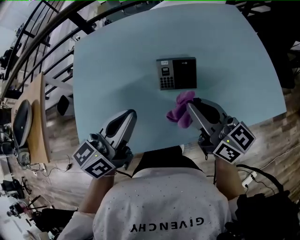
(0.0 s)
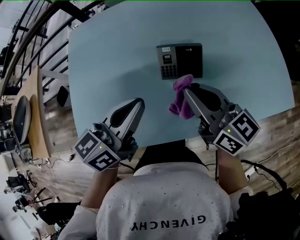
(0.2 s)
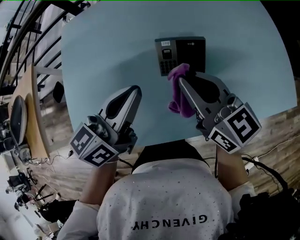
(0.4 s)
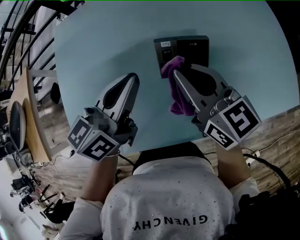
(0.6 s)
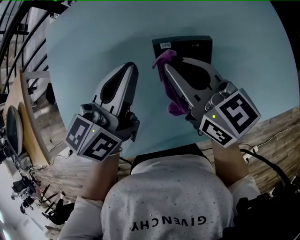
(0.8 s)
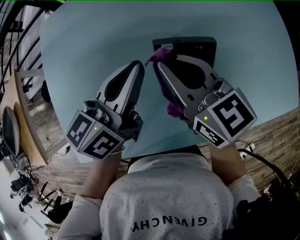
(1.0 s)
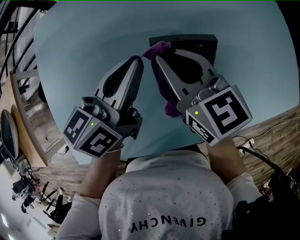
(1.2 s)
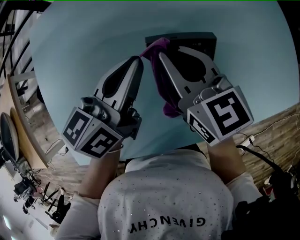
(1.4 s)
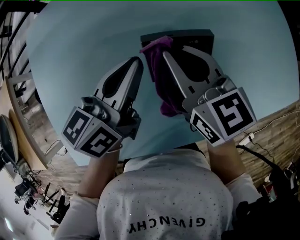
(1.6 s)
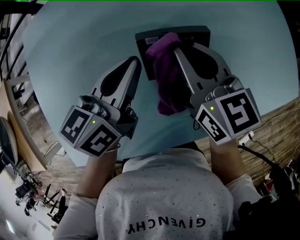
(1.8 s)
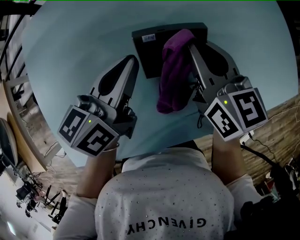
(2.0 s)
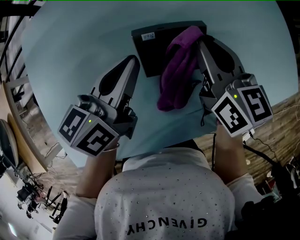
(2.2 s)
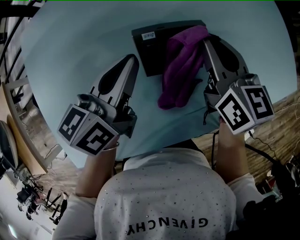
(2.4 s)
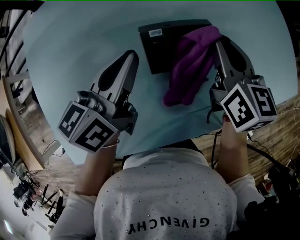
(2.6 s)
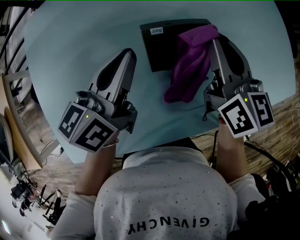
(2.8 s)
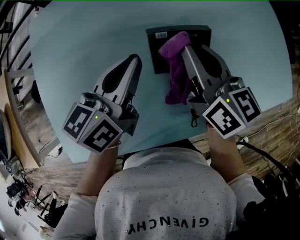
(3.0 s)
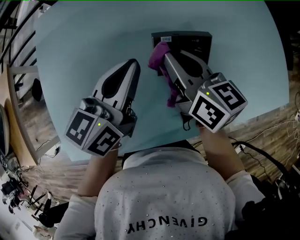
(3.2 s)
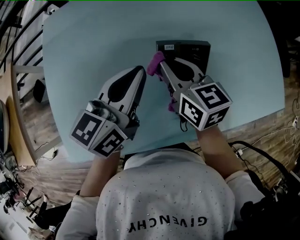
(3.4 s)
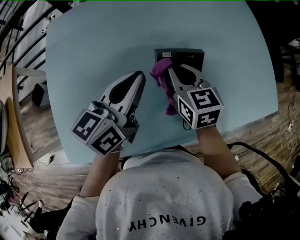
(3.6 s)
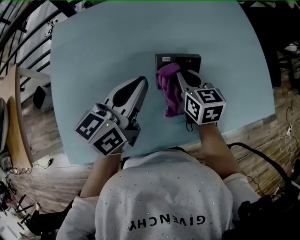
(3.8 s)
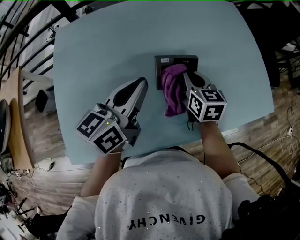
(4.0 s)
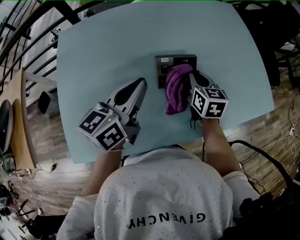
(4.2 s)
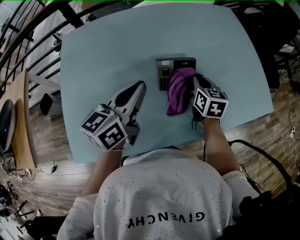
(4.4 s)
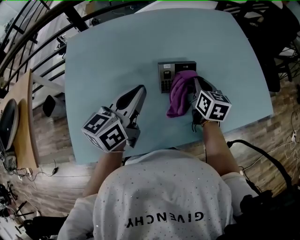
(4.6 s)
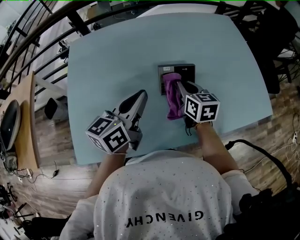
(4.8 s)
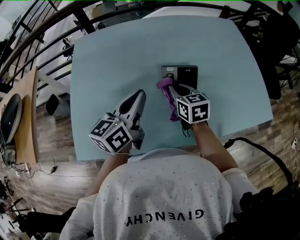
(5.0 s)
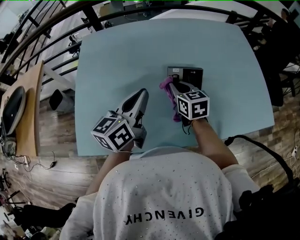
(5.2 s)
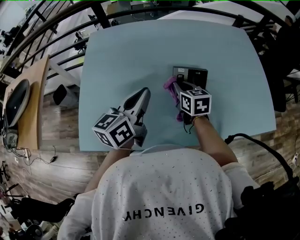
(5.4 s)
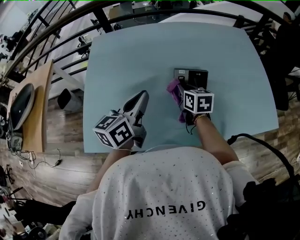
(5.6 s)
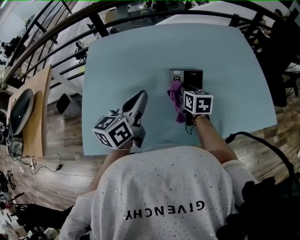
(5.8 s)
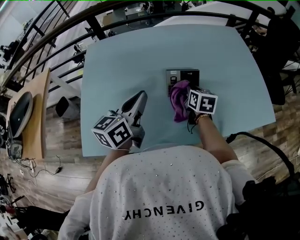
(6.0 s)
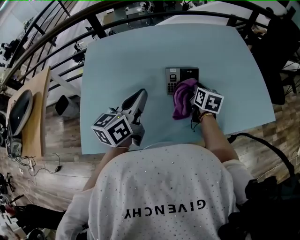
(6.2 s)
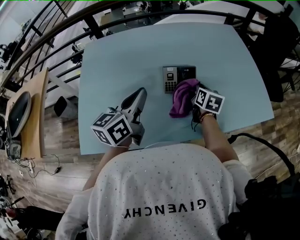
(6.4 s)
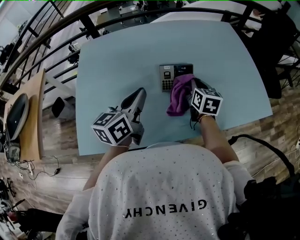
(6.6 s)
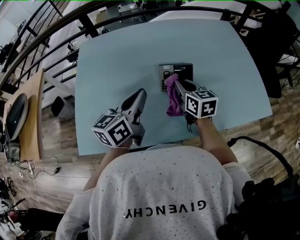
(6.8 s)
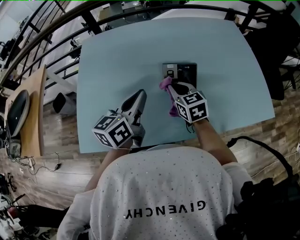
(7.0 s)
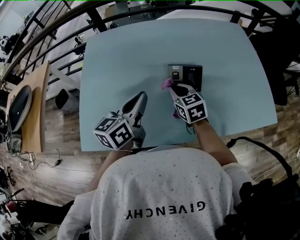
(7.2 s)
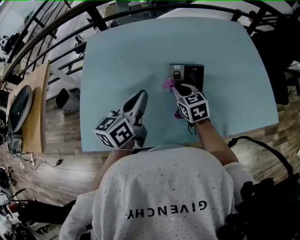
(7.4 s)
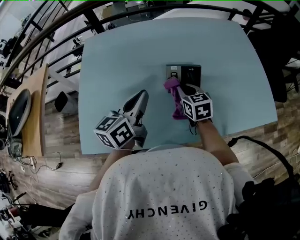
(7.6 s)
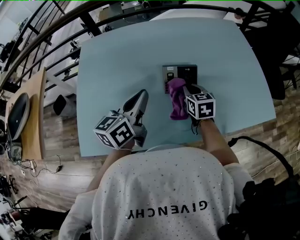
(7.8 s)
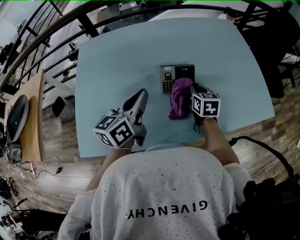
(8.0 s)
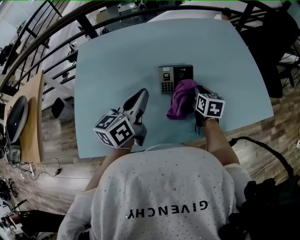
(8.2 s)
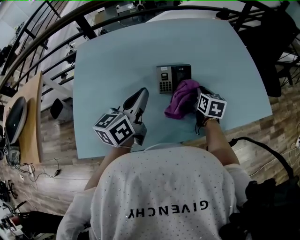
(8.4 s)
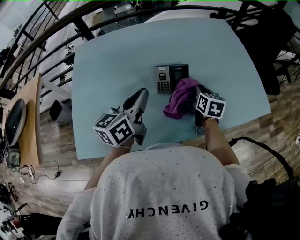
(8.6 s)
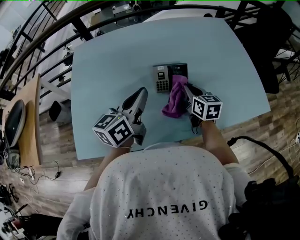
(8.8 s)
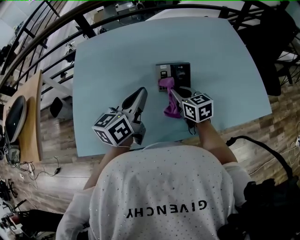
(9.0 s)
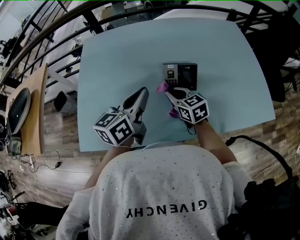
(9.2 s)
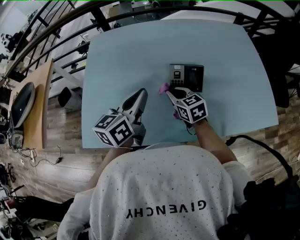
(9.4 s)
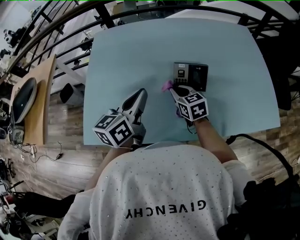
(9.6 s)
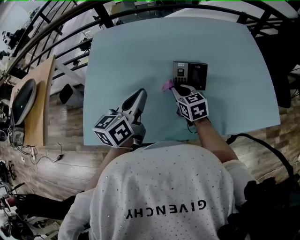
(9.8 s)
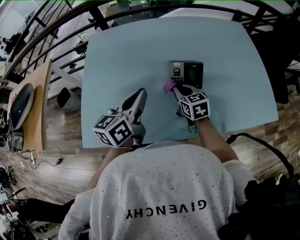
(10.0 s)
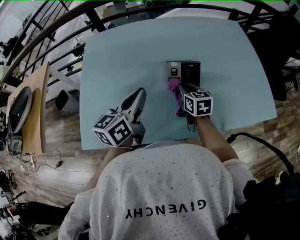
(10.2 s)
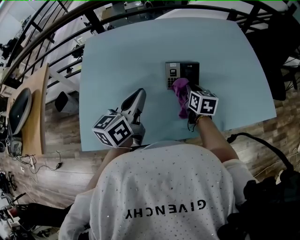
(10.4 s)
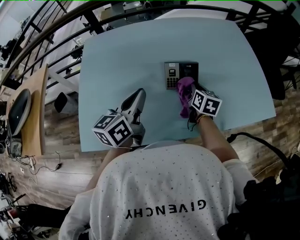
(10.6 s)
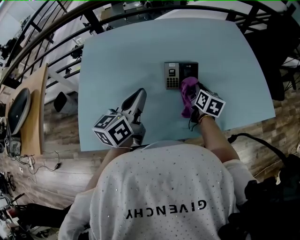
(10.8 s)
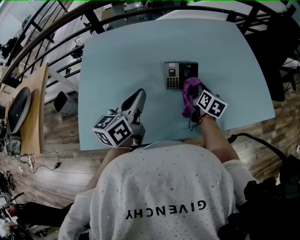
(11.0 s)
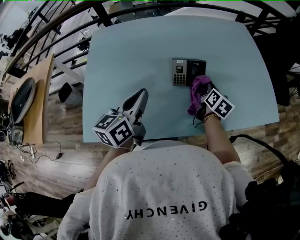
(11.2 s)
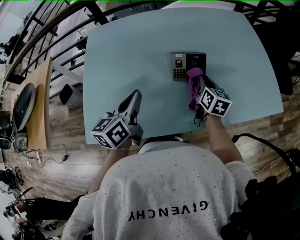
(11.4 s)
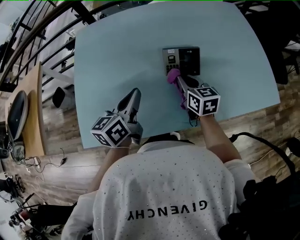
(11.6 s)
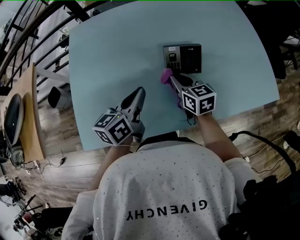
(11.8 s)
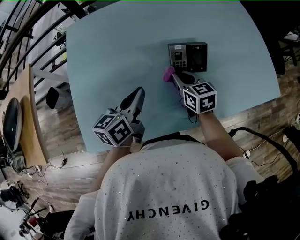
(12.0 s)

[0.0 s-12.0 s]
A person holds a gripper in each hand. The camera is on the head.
0.0 to 1.6 s: Both grippers travel together forward and downward, roughly 20 cm. The right gripper swivels roughly 20 degrees.
1.6 to 3.0 s: The right gripper moves about 10 cm to the right and comes back.
3.0 to 4.4 s: The right gripper shifts approximately 10 cm to the right and downward, and rotates some 30 degrees. Meanwhile the left gripper heads upward and backward, covering roughly 10 cm.
4.4 to 6.0 s: The left gripper shifts by some 5 cm. The right gripper reaches roughly 15 cm to the left, then returns.
6.0 to 7.6 s: The right gripper goes left and right, about 15 cm each way, reversing 2 times, and turns by some 20 degrees.
7.6 to 9.0 s: The right gripper moves about 15 cm to the right and comes back.
9.0 to 10.4 s: The right gripper moves approximately 5 cm, and changes its angle by some 20 degrees.
10.4 to 12.0 s: The right gripper shifts some 10 cm to the left. Meanwhile the left gripper is displaced downward by some 10 cm.

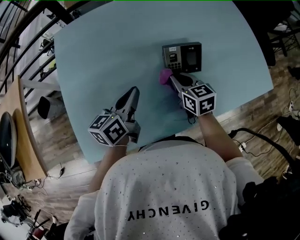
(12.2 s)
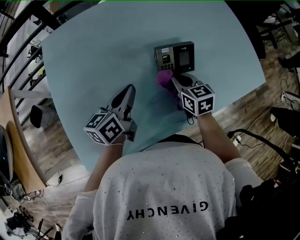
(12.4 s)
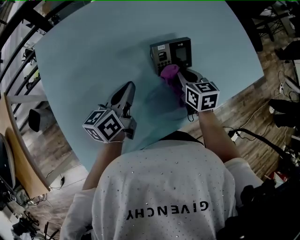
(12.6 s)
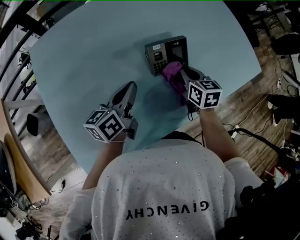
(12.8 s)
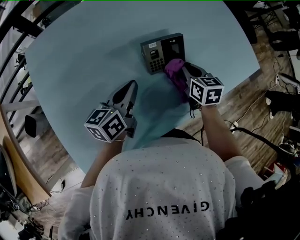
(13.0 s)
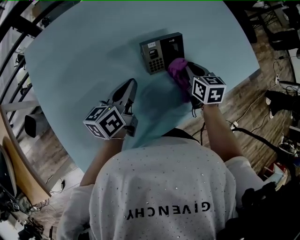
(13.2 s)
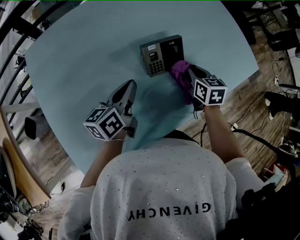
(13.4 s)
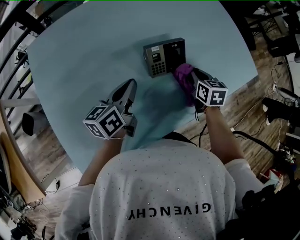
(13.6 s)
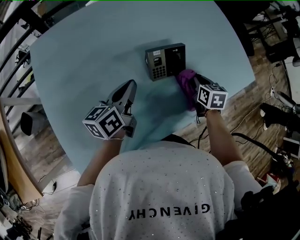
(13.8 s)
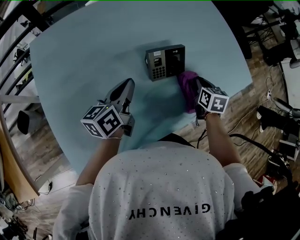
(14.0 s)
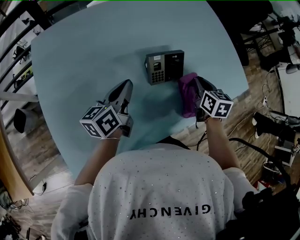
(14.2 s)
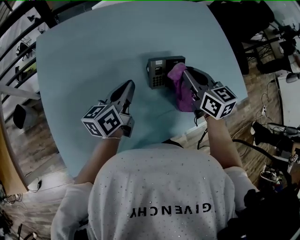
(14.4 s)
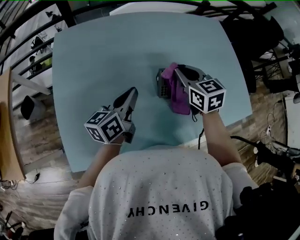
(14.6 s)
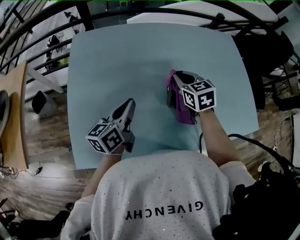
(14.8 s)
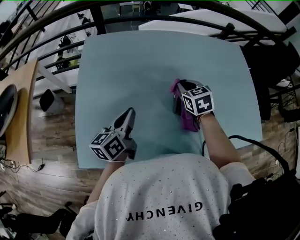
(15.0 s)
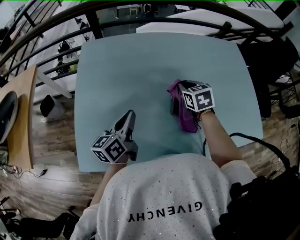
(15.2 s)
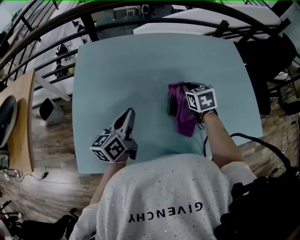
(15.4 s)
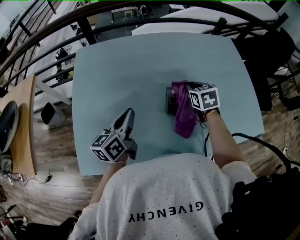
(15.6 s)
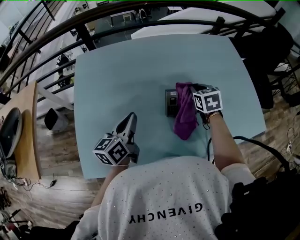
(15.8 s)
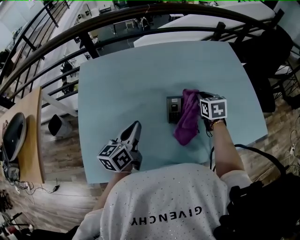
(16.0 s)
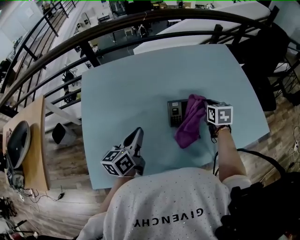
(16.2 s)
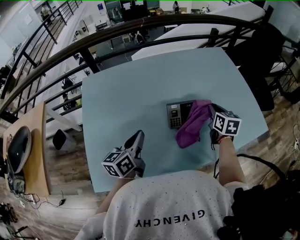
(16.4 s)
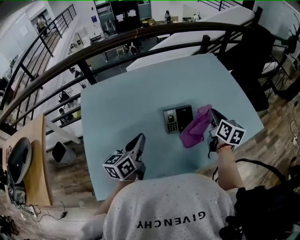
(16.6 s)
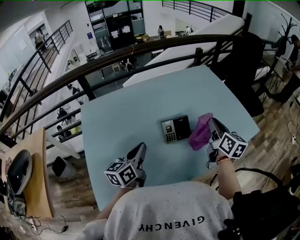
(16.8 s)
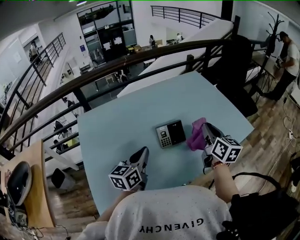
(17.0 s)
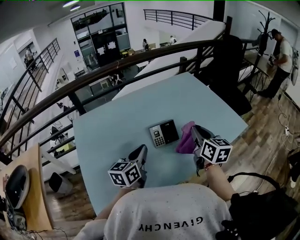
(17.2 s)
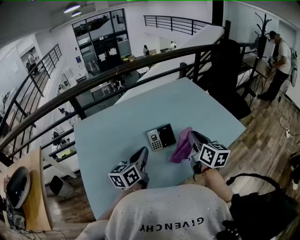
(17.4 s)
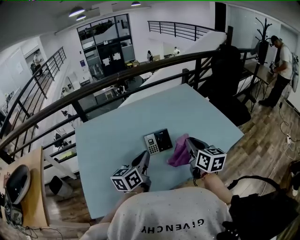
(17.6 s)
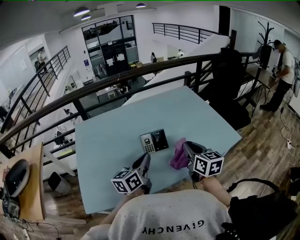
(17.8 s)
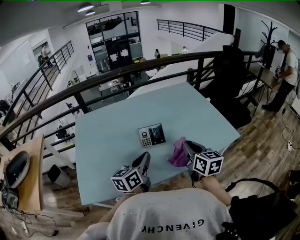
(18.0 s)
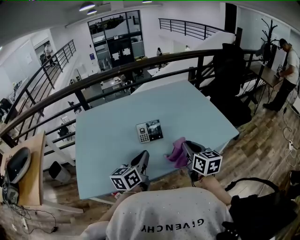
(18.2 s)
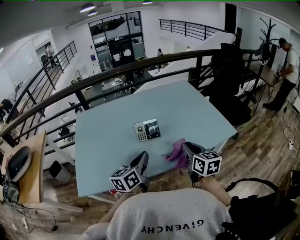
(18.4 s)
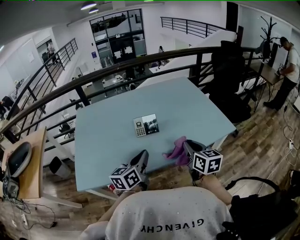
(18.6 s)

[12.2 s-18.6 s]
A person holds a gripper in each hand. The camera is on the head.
12.2 to 13.8 s: The left gripper moves forward, some 5 cm; the right gripper shifts approximately 20 cm to the right, and rotates roughly 30 degrees.
13.8 to 15.4 s: The left gripper changes place by approximately 10 cm, and swivels roughly 30 degrees. Meanwhile the right gripper changes place by about 20 cm, and changes its angle by about 30 degrees.
15.4 to 17.0 s: The right gripper is displaced upward, backward and to the right by some 25 cm, and tips its fingers upward by approximately 40 degrees. Meanwhile the left gripper is displaced to the right and upward by some 10 cm, and rotates about 30 degrees.
17.0 to 18.6 s: The left gripper heads to the right and backward, covering some 25 cm. Meanwhile the right gripper travels backward and to the right by about 20 cm.

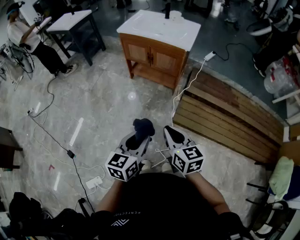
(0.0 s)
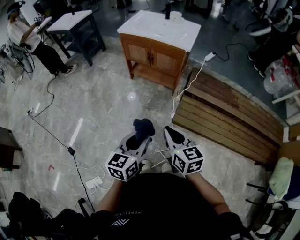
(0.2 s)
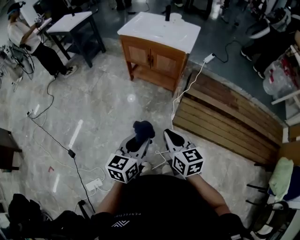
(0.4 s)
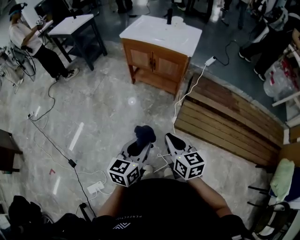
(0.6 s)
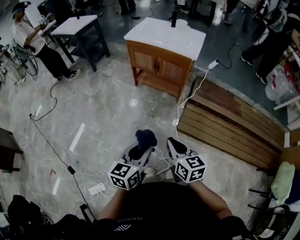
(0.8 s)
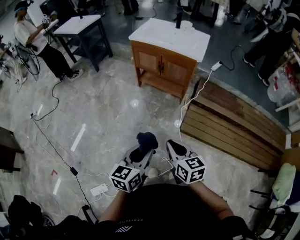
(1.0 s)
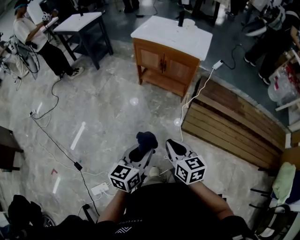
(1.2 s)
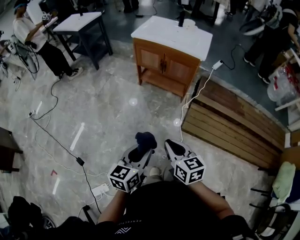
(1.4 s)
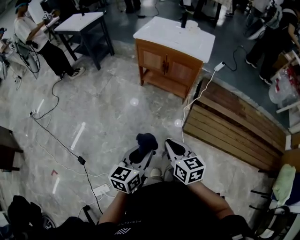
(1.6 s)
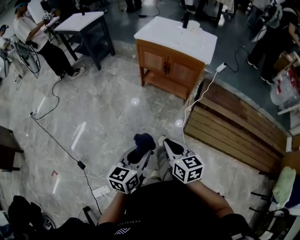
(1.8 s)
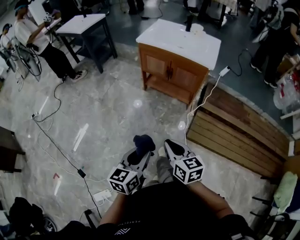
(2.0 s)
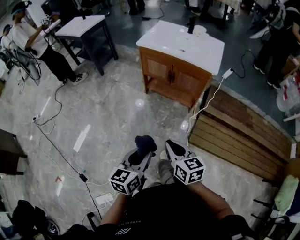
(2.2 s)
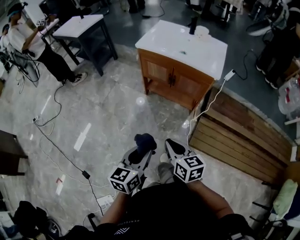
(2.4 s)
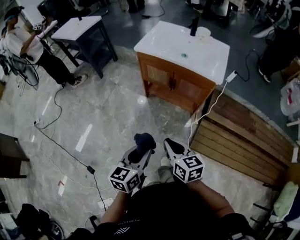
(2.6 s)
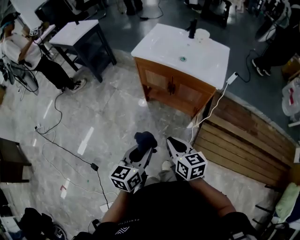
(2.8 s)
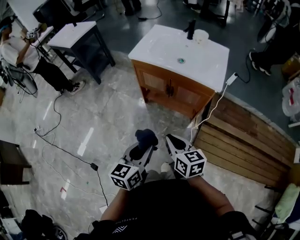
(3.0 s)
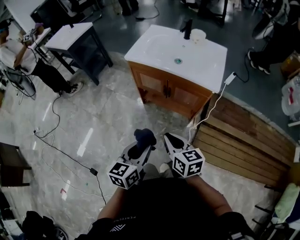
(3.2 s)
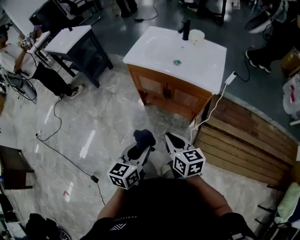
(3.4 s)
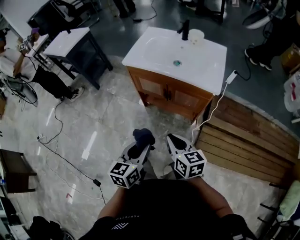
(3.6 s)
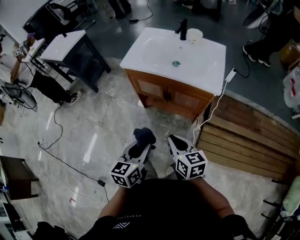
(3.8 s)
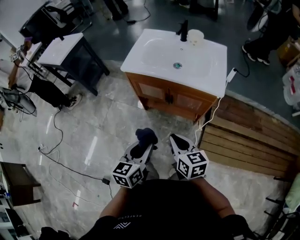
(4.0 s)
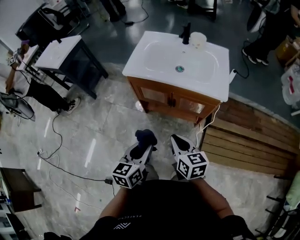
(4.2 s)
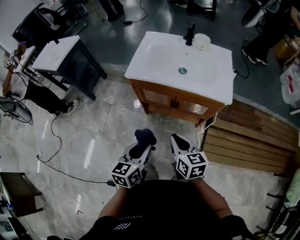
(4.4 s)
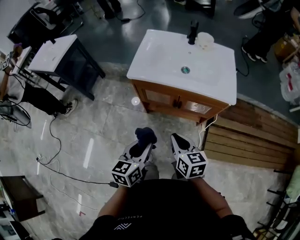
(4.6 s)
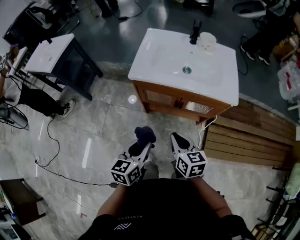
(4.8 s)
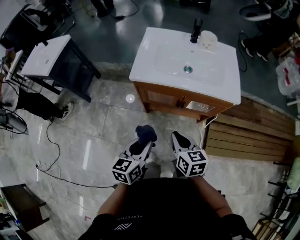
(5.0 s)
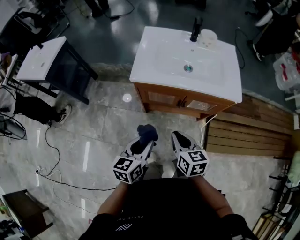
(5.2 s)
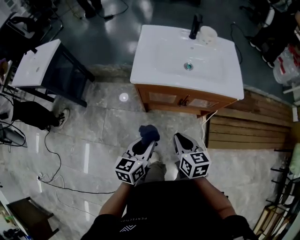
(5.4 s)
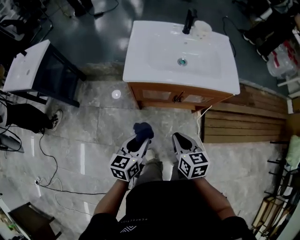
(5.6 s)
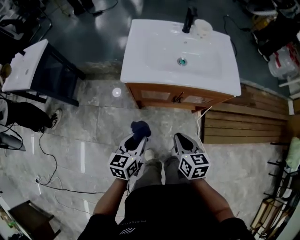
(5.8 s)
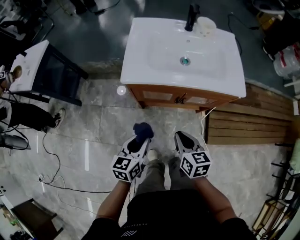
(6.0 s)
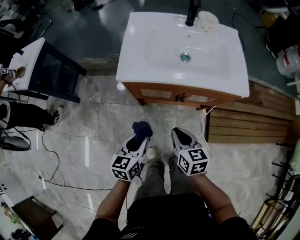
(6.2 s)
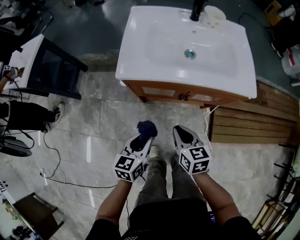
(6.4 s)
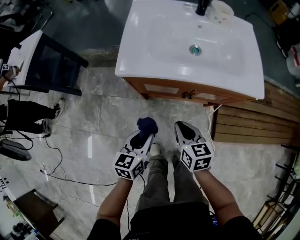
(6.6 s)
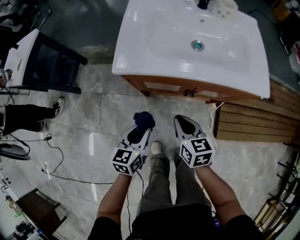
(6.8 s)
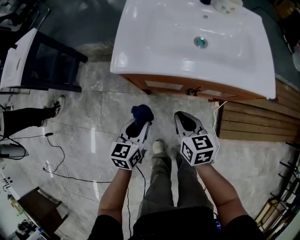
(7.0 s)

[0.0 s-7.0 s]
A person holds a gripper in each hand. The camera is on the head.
0.0 to 1.4 s: The grippers both shift to the left by approximately 10 cm.
1.4 to 2.8 s: The grippers both shift forward by about 30 cm.
2.8 to 4.2 s: Both grippers move forward, about 15 cm.
4.2 to 5.6 s: The right gripper goes roughly 15 cm to the left and forward; the left gripper goes roughly 20 cm to the left, forward and downward.
5.6 to 7.0 s: The left gripper goes roughly 15 cm downward and forward. Meanwhile the right gripper shifts about 15 cm forward and downward.
